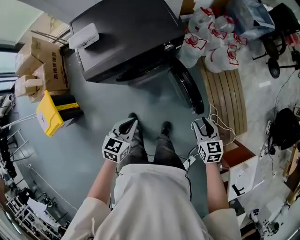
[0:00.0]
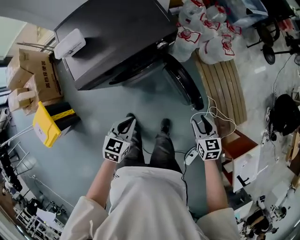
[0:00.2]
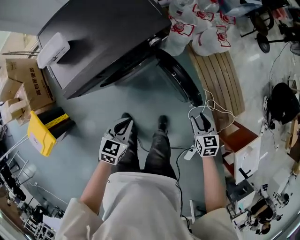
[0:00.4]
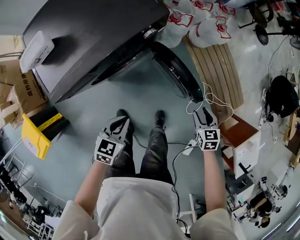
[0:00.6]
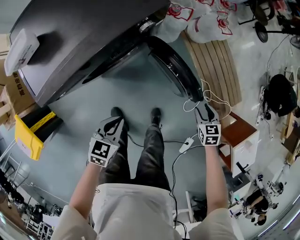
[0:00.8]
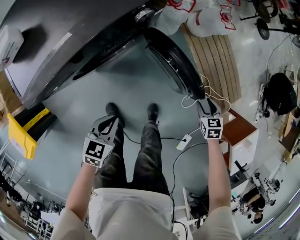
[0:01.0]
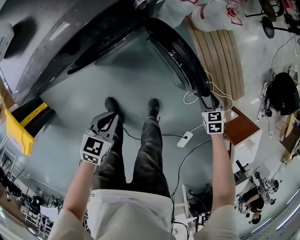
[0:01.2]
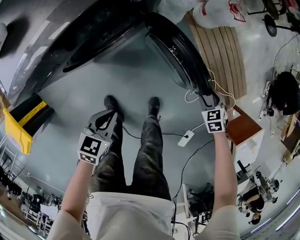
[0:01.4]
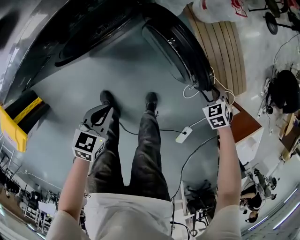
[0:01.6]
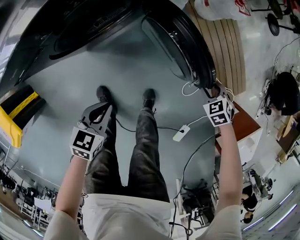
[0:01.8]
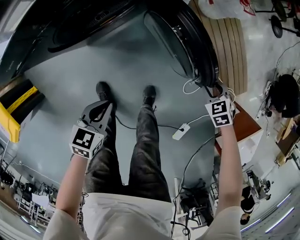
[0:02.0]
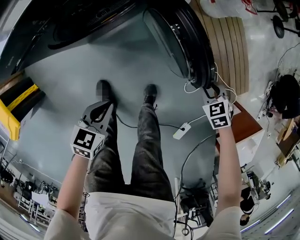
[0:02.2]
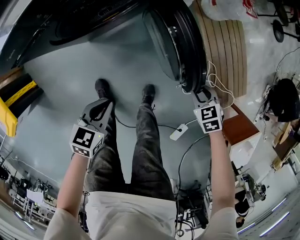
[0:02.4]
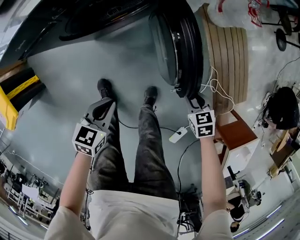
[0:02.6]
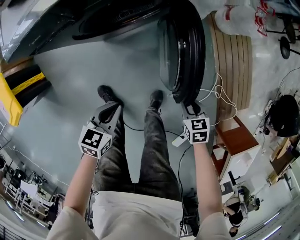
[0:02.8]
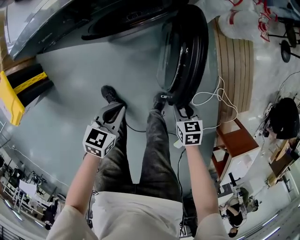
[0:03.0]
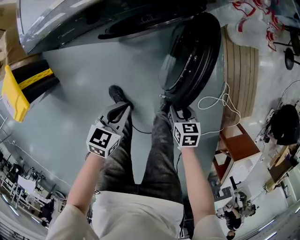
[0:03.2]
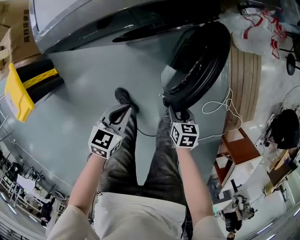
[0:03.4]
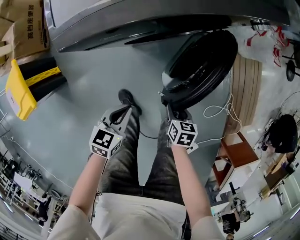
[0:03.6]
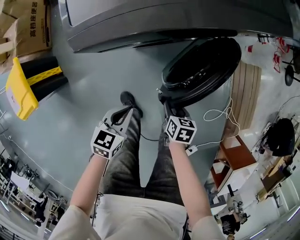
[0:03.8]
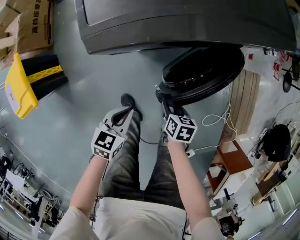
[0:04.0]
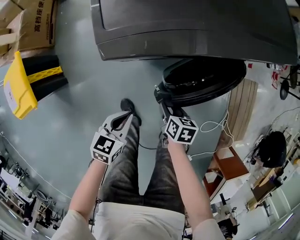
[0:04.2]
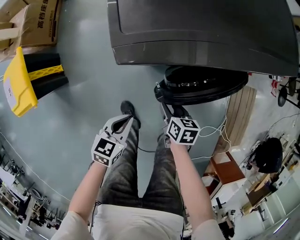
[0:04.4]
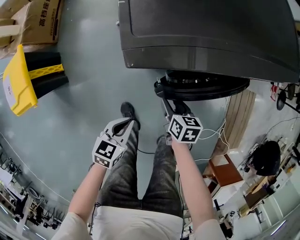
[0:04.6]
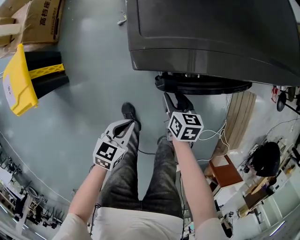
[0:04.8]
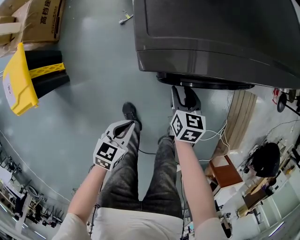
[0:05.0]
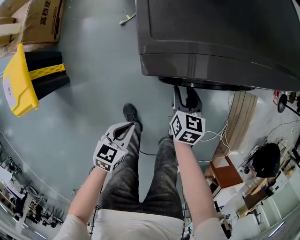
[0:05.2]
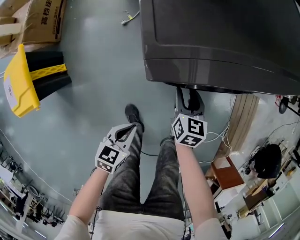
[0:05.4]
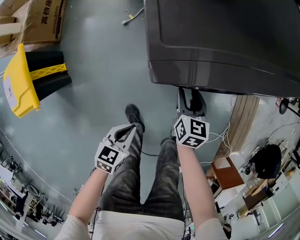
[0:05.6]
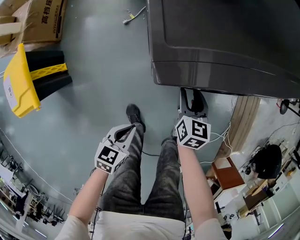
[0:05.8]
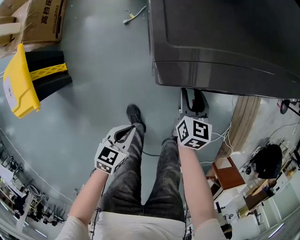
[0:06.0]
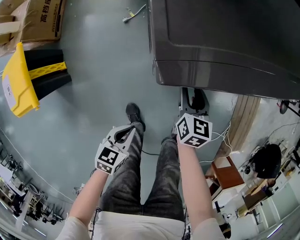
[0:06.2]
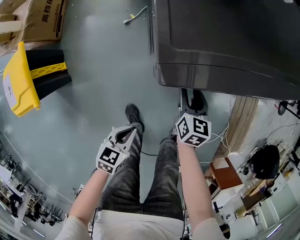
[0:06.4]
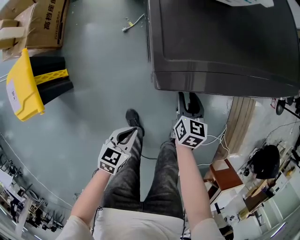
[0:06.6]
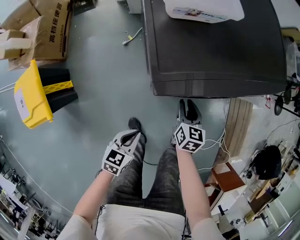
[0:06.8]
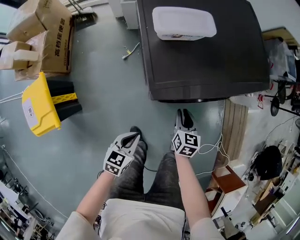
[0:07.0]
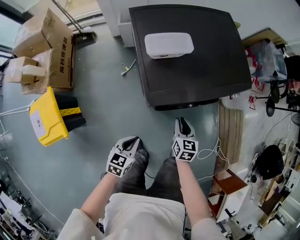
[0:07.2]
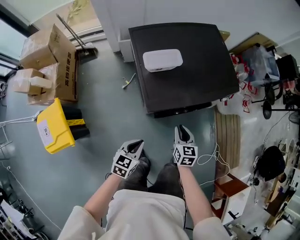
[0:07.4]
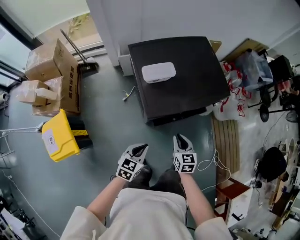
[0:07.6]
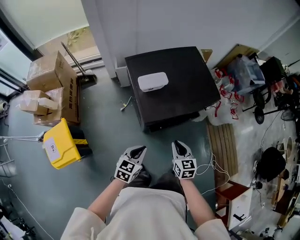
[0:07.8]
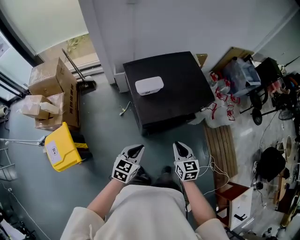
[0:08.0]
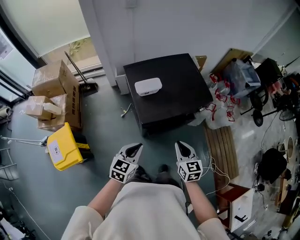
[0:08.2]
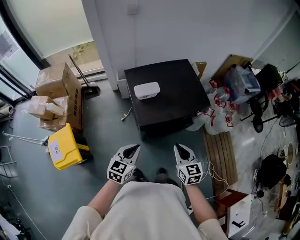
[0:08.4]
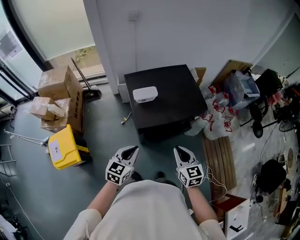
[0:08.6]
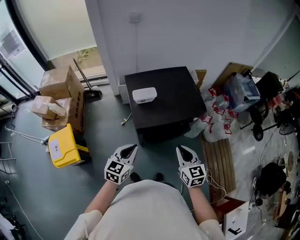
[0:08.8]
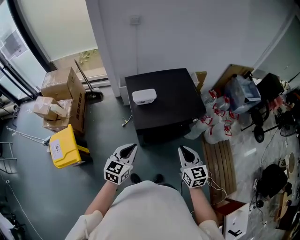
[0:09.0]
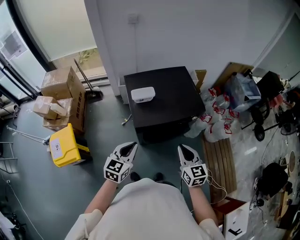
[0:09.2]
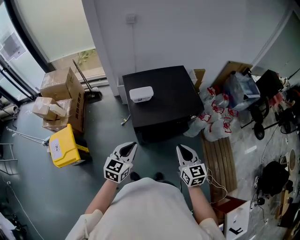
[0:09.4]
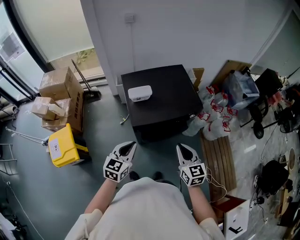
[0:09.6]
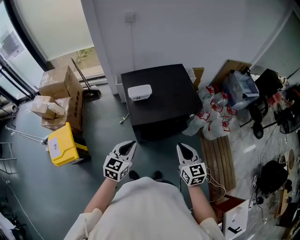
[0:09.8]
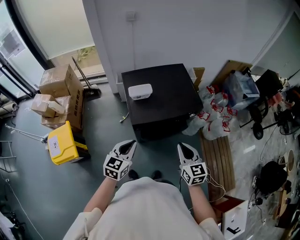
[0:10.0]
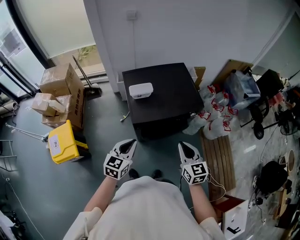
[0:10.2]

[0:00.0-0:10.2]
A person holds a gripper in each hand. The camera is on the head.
0:00.0 to 0:01.4: The two grippers go about 30 cm downward. The right gripper changes its angle by roughly 30 degrees.
0:01.4 to 0:03.0: The left gripper ends up roughly 10 cm from where it was. Meanwhile the right gripper moves about 20 cm, changes its angle by about 20 degrees, and closes up.
0:03.0 to 0:04.4: The right gripper moves to the left and forward, approximately 35 cm. Meanwhile the left gripper travels to the left by some 20 cm.
0:04.4 to 0:05.8: The left gripper changes place by roughly 5 cm, while the right gripper shifts approximately 10 cm forward, and swivels about 30 degrees.
0:05.8 to 0:07.2: The grippers both shift upward by roughly 20 cm. The right gripper closes its fingers.
0:07.2 to 0:08.8: The two grippers go approximately 35 cm upward. The right gripper changes its angle by about 20 degrees. The left gripper turns by about 20 degrees.
0:08.8 to 0:10.2: There are only small adjustments of the grippers.

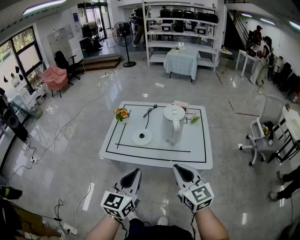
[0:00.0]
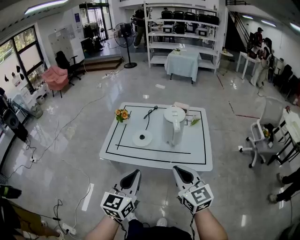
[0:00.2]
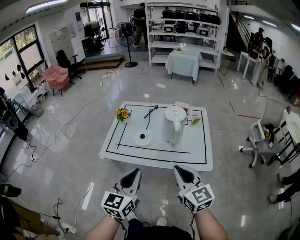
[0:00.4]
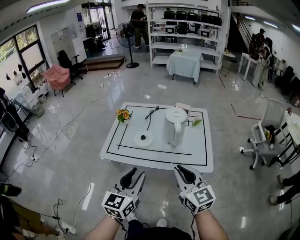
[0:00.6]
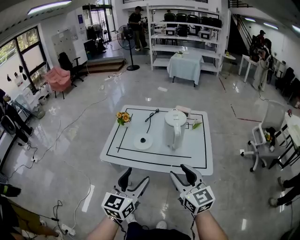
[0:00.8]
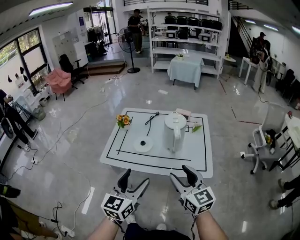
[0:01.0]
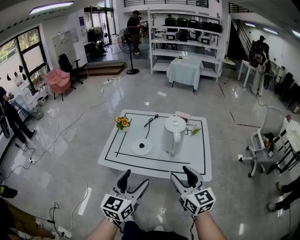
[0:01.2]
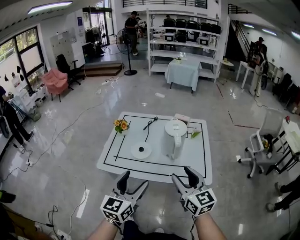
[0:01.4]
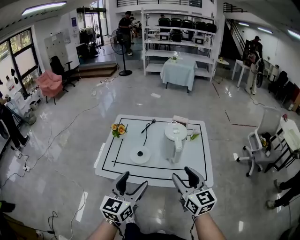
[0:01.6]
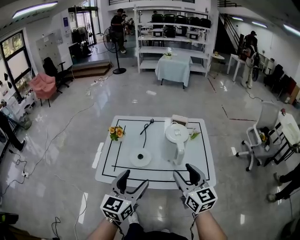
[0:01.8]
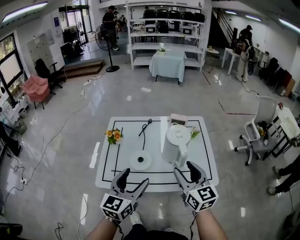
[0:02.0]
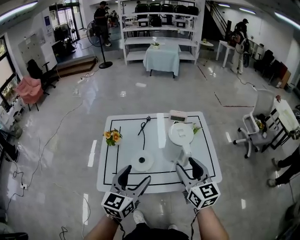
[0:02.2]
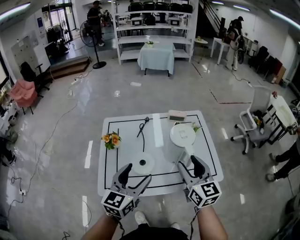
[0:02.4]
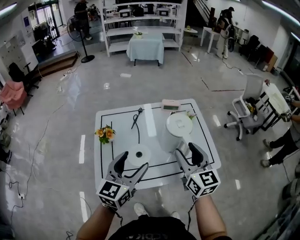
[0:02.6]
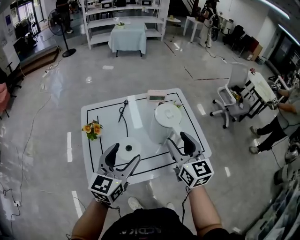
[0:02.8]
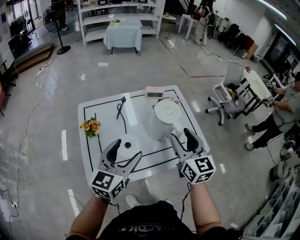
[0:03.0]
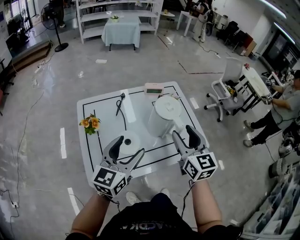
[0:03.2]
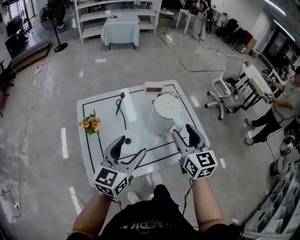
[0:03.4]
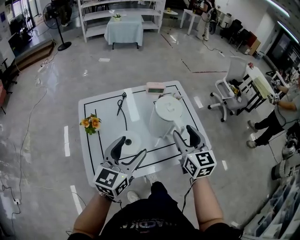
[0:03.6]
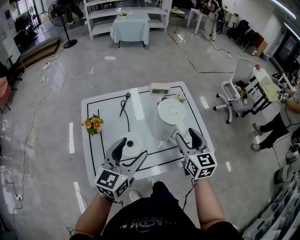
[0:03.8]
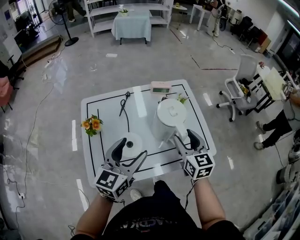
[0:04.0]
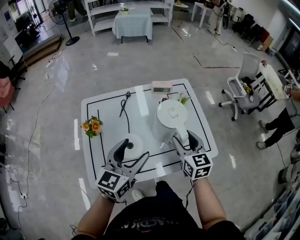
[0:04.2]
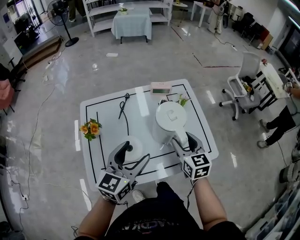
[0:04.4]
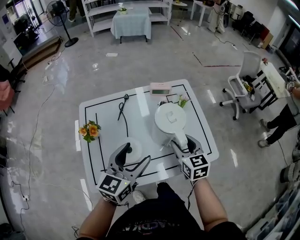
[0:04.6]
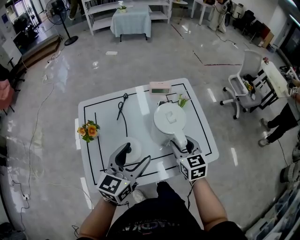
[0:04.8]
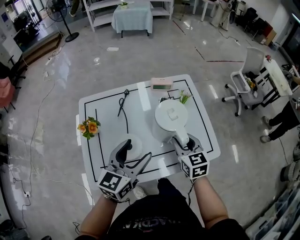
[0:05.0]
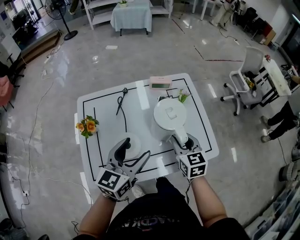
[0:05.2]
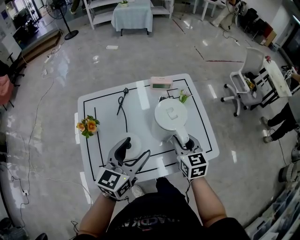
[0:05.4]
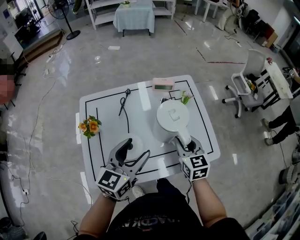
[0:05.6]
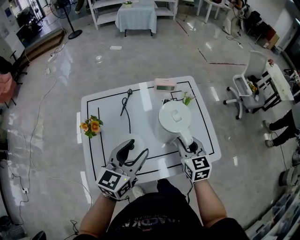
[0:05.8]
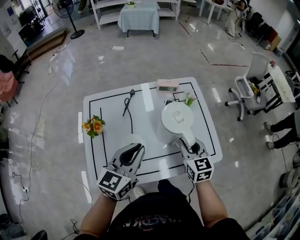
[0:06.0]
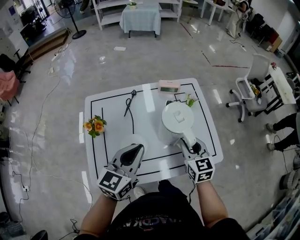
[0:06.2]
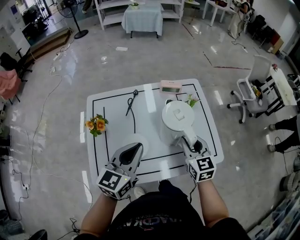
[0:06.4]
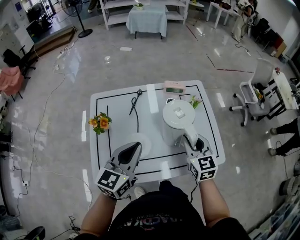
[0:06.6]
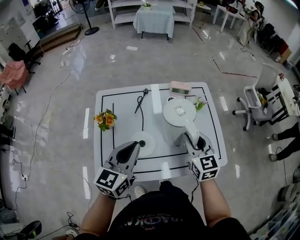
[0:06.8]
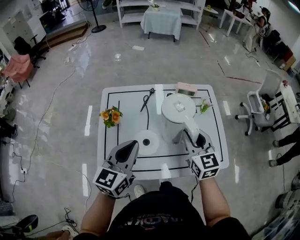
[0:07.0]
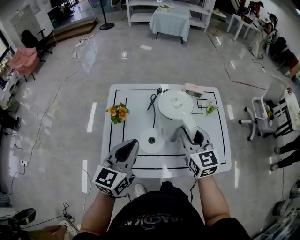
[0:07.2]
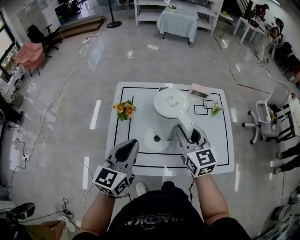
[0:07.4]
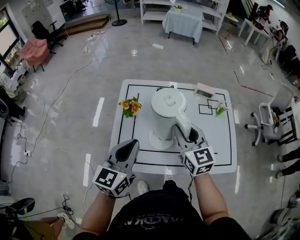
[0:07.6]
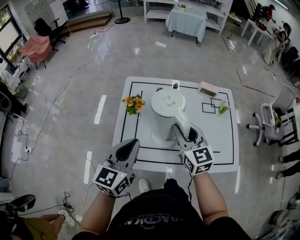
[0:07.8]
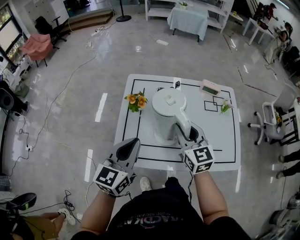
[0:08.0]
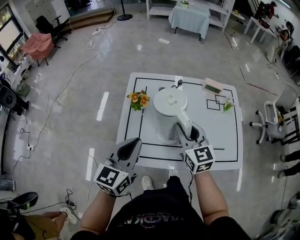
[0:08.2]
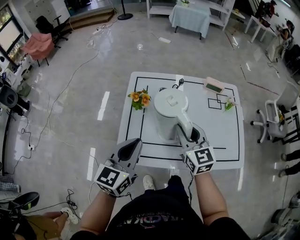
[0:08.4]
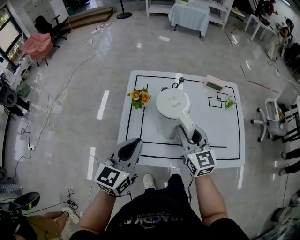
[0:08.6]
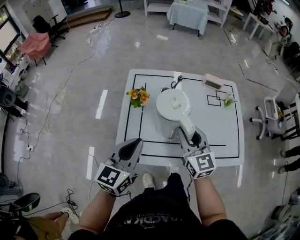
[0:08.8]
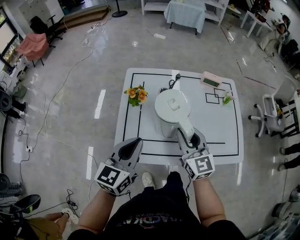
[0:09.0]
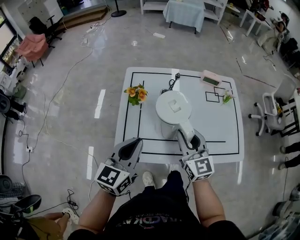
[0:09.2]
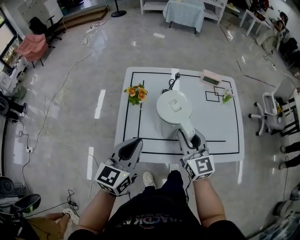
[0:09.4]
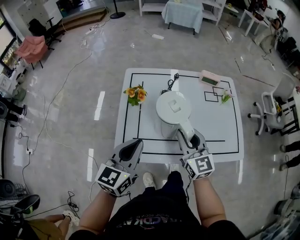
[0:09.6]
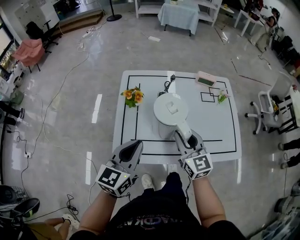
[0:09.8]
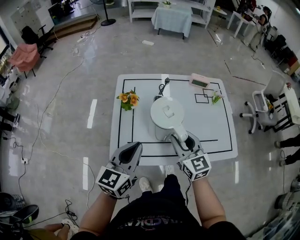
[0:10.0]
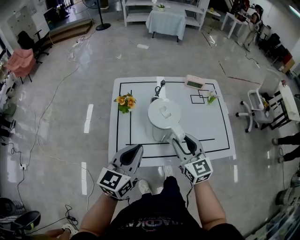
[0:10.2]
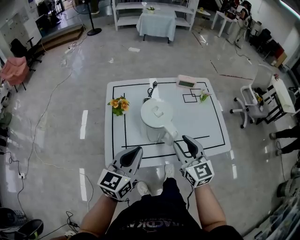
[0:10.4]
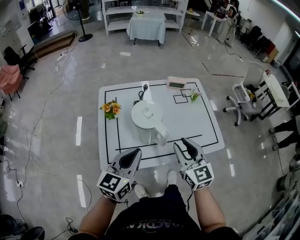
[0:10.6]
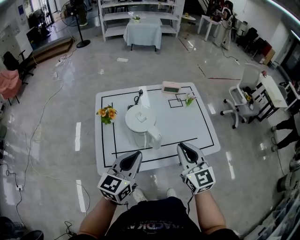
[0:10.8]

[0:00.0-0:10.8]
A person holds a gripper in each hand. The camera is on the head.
0:00.0 to 0:01.6: The two grippers go approximately 10 cm forward. The right gripper opens up, while the left gripper opens its fingers.
0:01.6 to 0:03.0: The right gripper ends up roughly 15 cm from where it was, and turns by some 30 degrees. The left gripper shifts by roughly 20 cm, and changes its angle by some 30 degrees.
0:03.0 to 0:04.6: The right gripper shifts roughly 15 cm downward and forward. Meanwhile the left gripper moves forward, about 5 cm.
0:04.6 to 0:06.2: The left gripper closes up. The right gripper closes up.
0:06.2 to 0:07.8: The right gripper heads to the left, covering some 20 cm, and turns by about 20 degrees. The left gripper heads to the left and backward, covering roughly 20 cm, and turns by approximately 20 degrees.
0:07.8 to 0:09.2: The right gripper travels backward by some 5 cm.
0:09.2 to 0:10.8: The right gripper goes approximately 15 cm to the right, backward and upward. Meanwhile the left gripper travels to the right by about 10 cm.

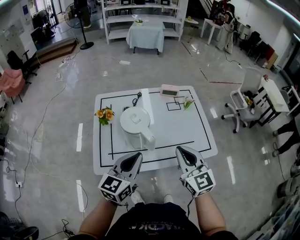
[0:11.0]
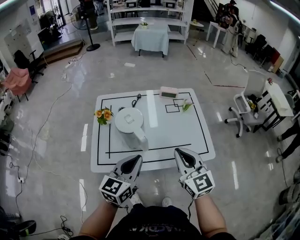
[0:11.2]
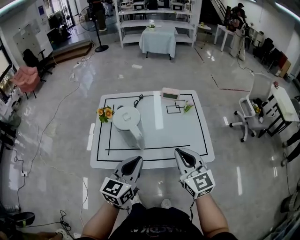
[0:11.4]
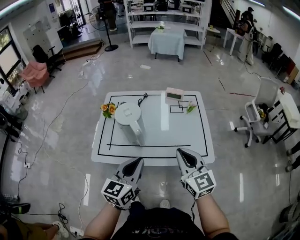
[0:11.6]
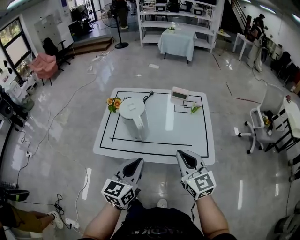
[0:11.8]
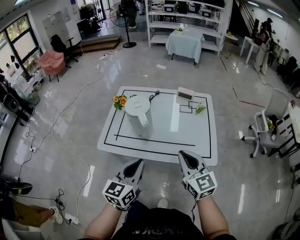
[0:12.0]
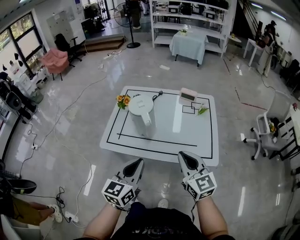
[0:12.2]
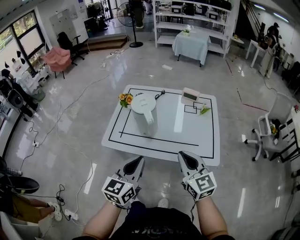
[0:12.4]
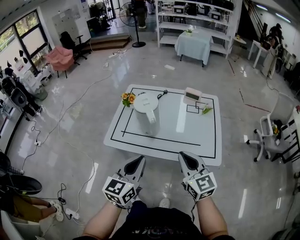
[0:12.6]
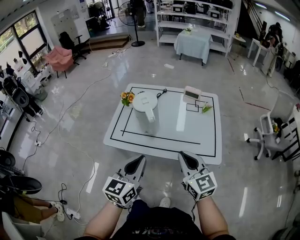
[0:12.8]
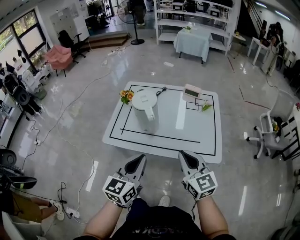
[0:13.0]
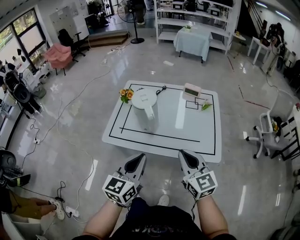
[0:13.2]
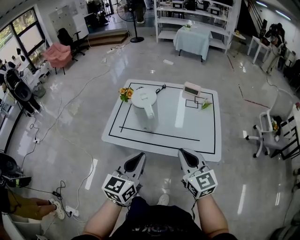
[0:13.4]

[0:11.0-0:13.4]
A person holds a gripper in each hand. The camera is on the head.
0:11.0 to 0:12.2: The right gripper travels to the right and backward by some 10 cm; the left gripper is displaced backward and to the right by about 15 cm, and swivels some 20 degrees.
0:12.2 to 0:13.4: The grippers move only a little.
